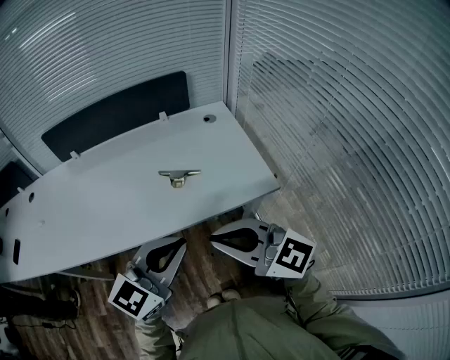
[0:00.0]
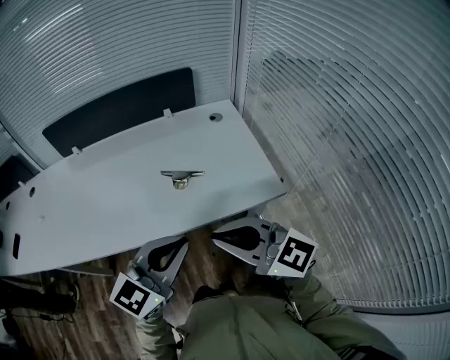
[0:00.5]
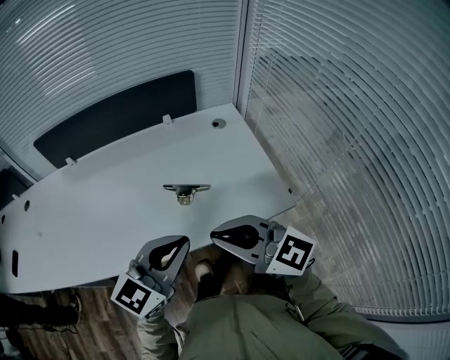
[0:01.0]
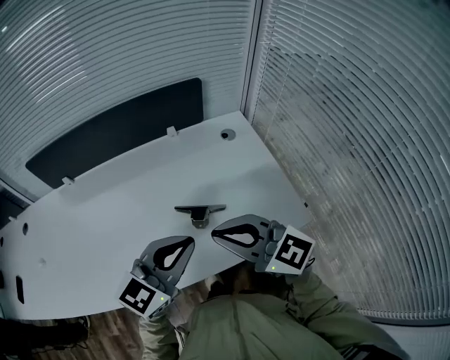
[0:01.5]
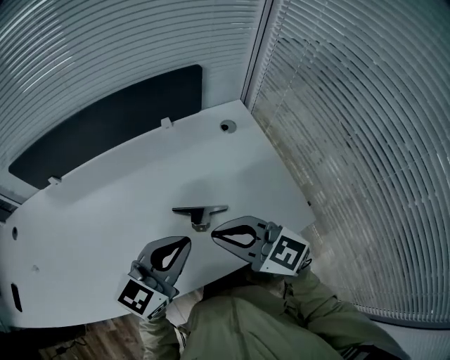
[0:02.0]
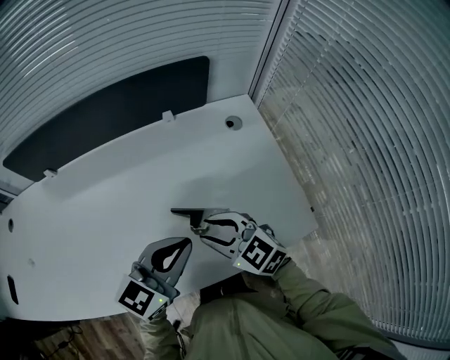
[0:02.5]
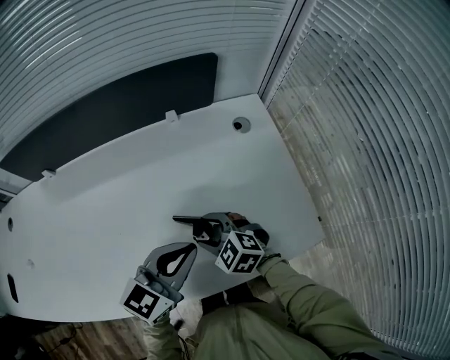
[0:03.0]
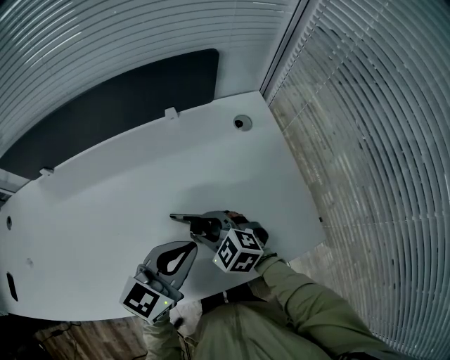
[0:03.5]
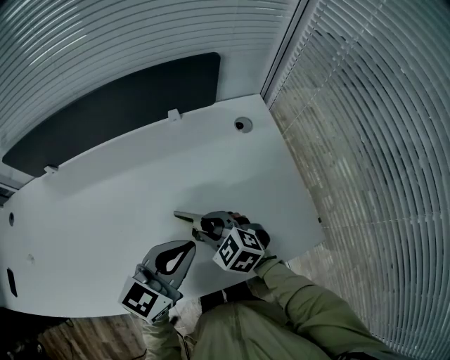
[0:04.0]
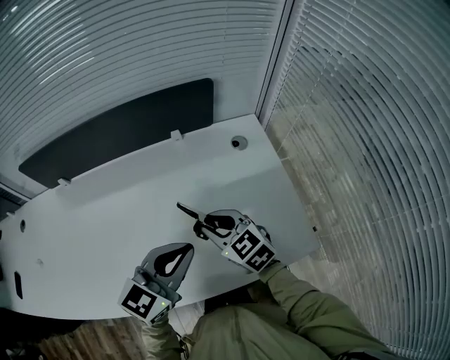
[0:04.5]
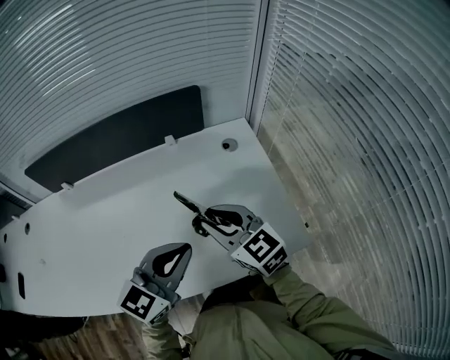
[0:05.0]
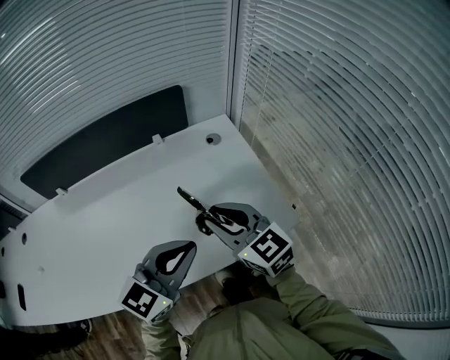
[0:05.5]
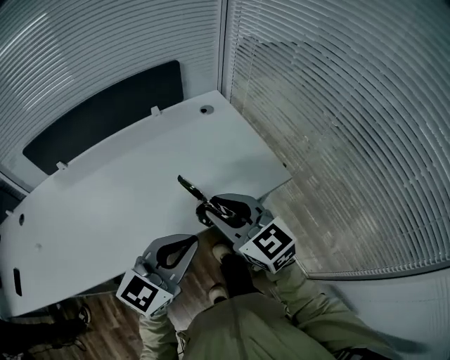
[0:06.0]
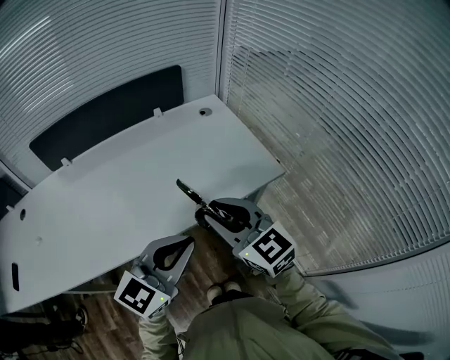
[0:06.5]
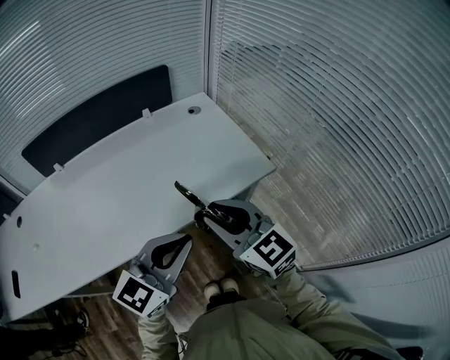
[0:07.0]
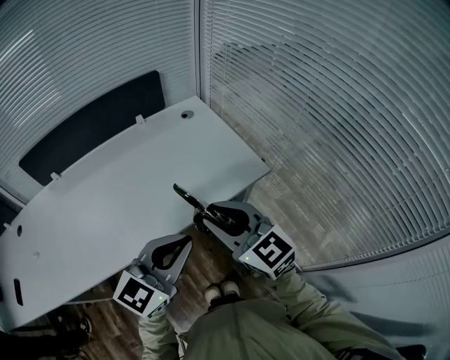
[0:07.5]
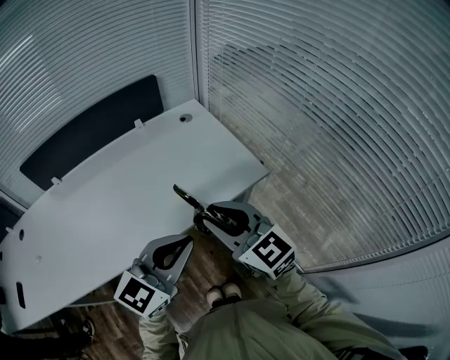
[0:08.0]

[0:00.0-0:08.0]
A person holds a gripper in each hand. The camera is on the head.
0:00.0 to 0:02.0: Both grippers travel together forward, approximately 25 cm.
0:02.0 to 0:04.0: The right gripper goes approximately 20 cm downward and forward, tips its fingers downward by some 30 degrees, and opens up, while the left gripper moves some 5 cm.
0:04.0 to 0:06.0: The right gripper is displaced upward and backward by about 30 cm, and tips its fingers upward by roughly 30 degrees, while the left gripper travels backward by about 20 cm, and swivels roughly 20 degrees.
0:06.0 to 0:08.0: The left gripper shifts by approximately 5 cm. The right gripper goes approximately 10 cm backward and to the right.

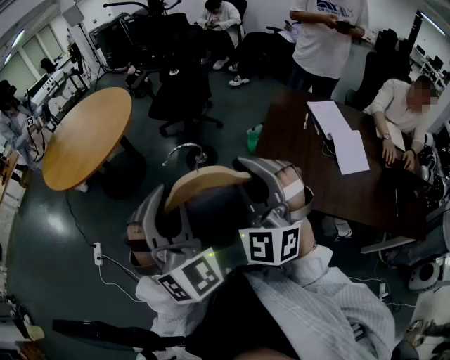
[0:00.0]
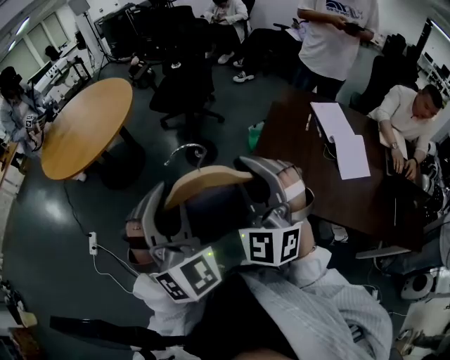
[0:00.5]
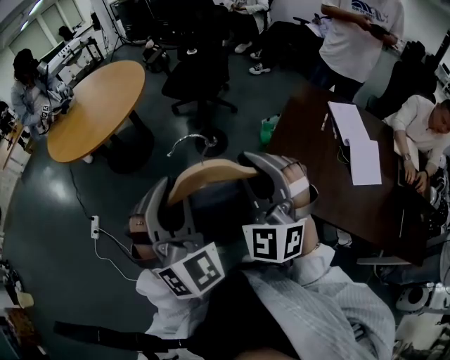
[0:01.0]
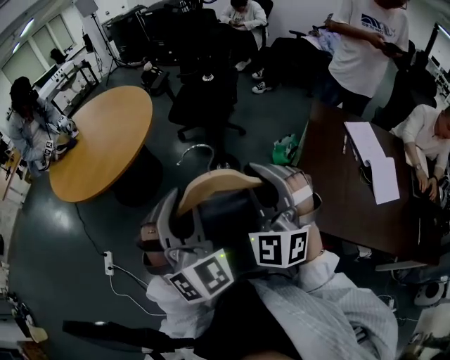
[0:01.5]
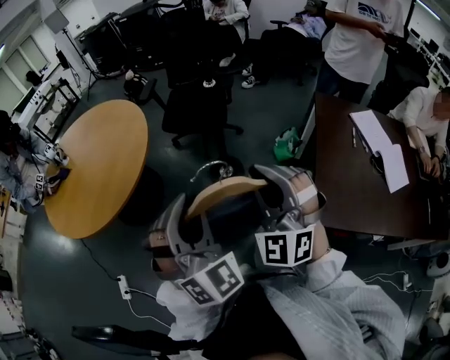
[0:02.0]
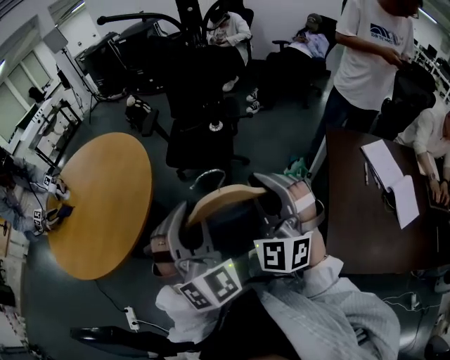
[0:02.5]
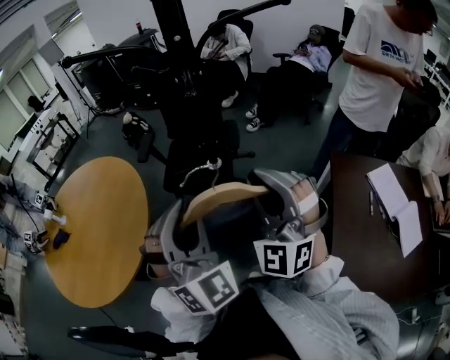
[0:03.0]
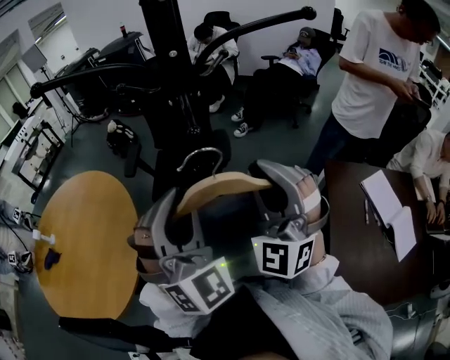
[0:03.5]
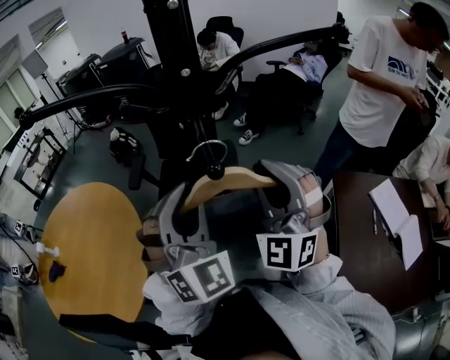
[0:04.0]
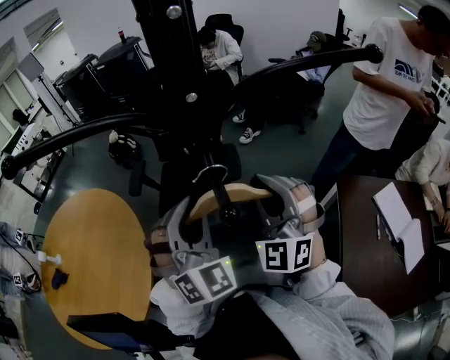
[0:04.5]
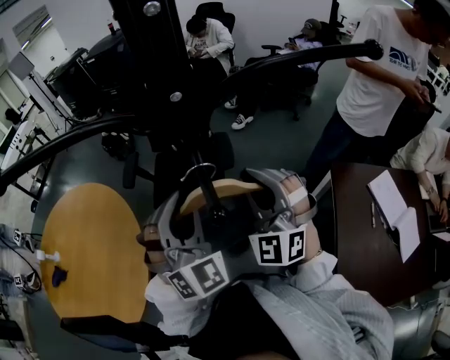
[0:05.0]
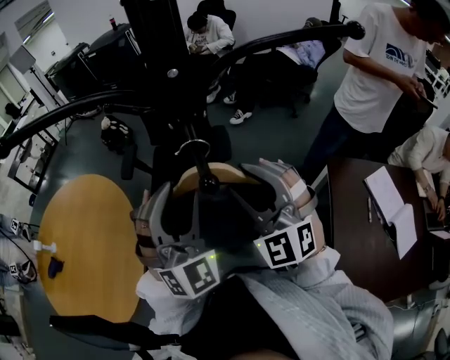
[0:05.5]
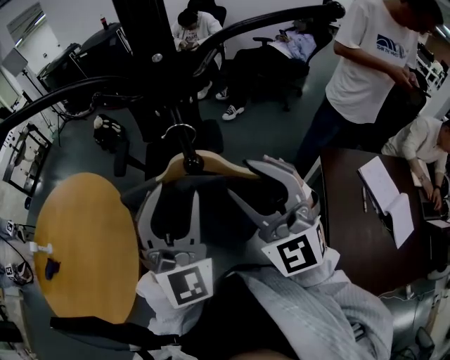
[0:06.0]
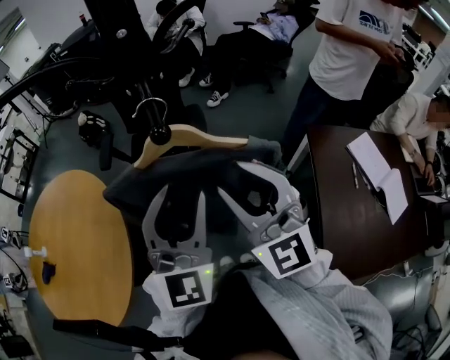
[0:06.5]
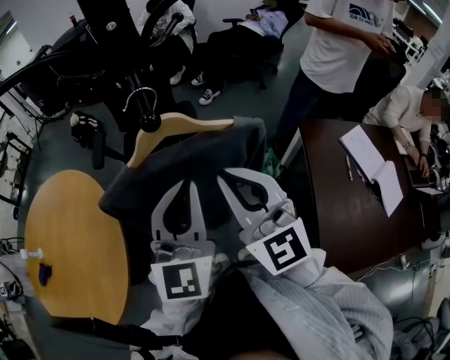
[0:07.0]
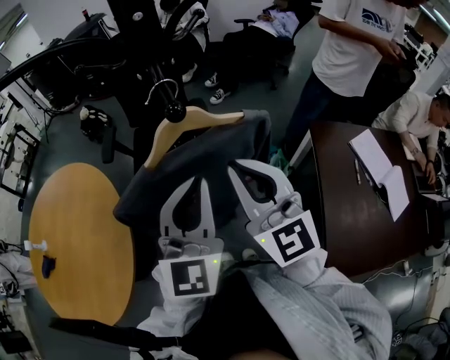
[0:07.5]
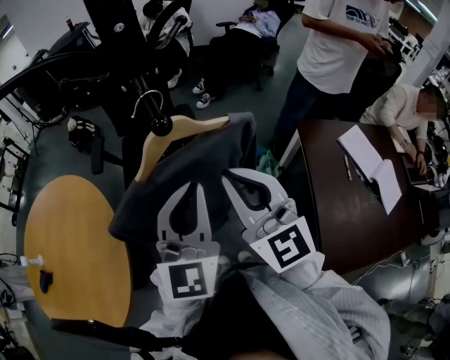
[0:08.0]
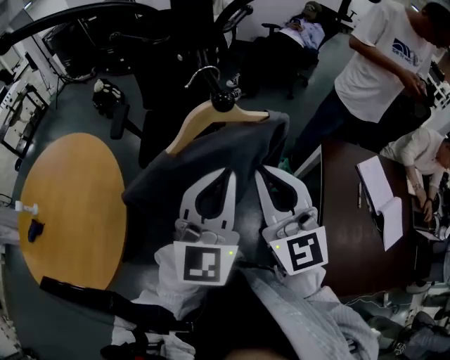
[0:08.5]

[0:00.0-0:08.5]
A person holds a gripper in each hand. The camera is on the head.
0:00.0 to 0:02.0: The grippers both shift forward and to the left by approximately 35 cm.
0:02.0 to 0:04.0: Both grippers are carried forward, approximately 50 cm.
0:04.0 to 0:06.5: The two grippers go some 10 cm backward. The right gripper rotates about 40 degrees, and opens up. The left gripper rotates roughly 40 degrees, and opens.
0:06.5 to 0:08.5: The left gripper closes up. The right gripper closes.

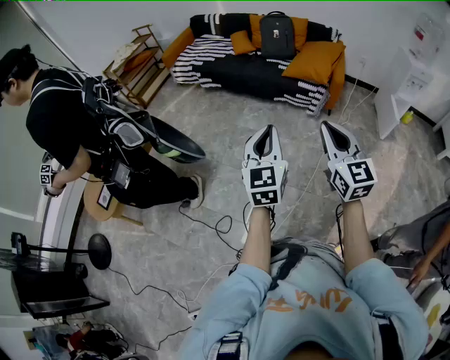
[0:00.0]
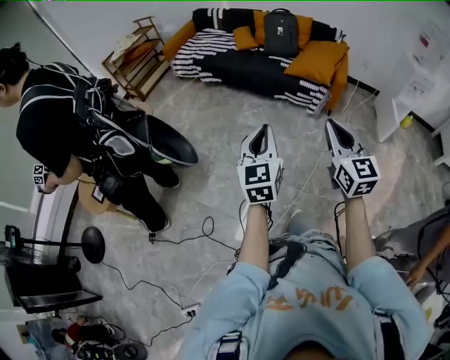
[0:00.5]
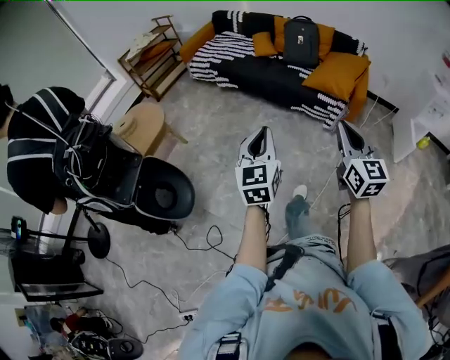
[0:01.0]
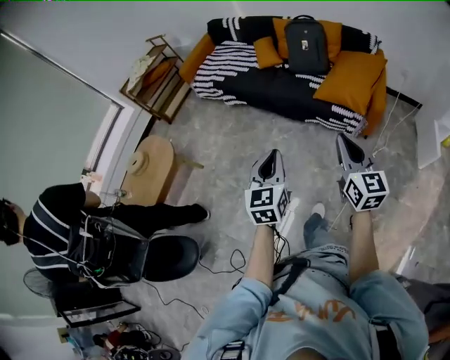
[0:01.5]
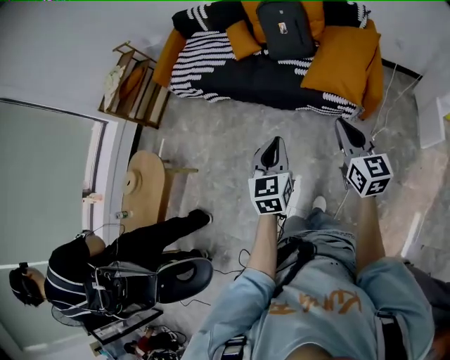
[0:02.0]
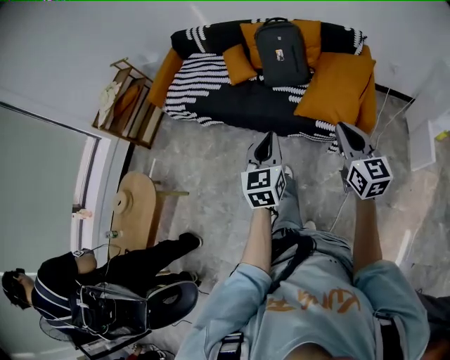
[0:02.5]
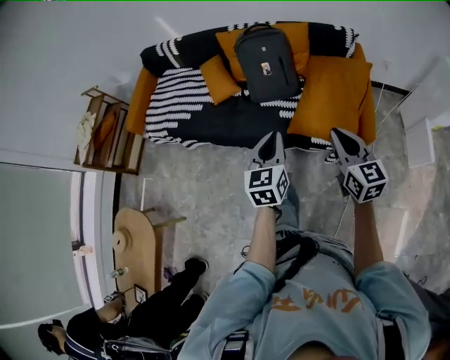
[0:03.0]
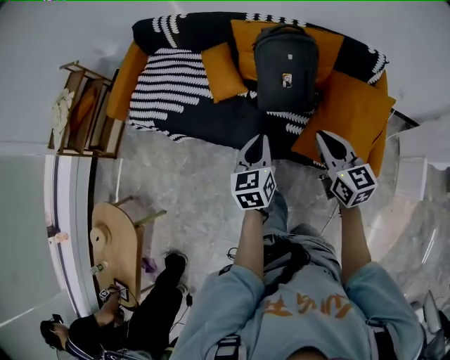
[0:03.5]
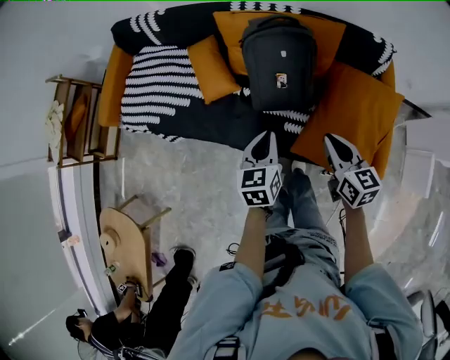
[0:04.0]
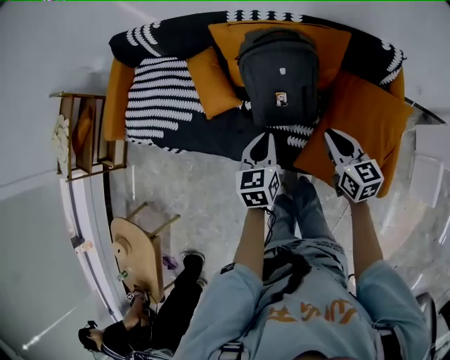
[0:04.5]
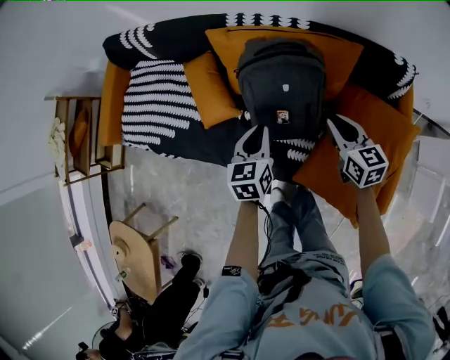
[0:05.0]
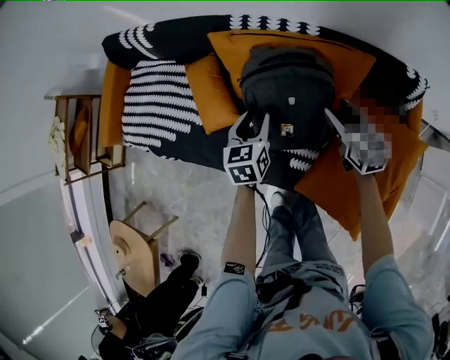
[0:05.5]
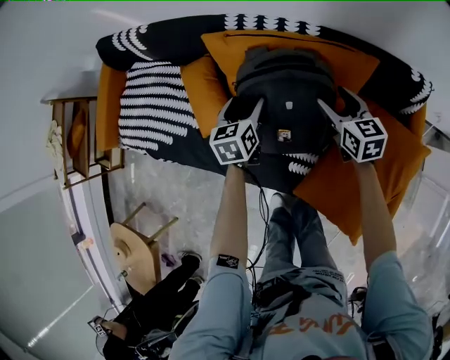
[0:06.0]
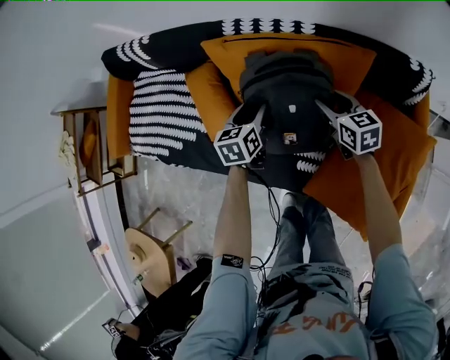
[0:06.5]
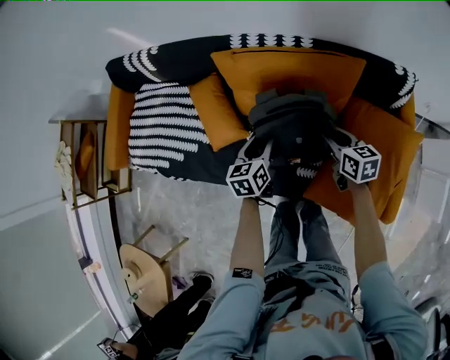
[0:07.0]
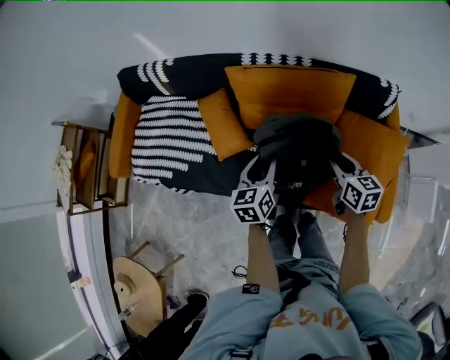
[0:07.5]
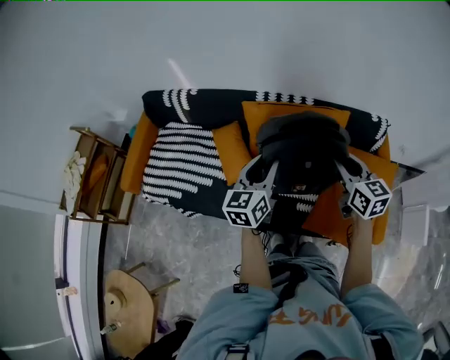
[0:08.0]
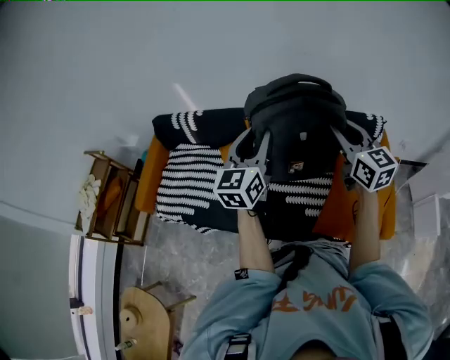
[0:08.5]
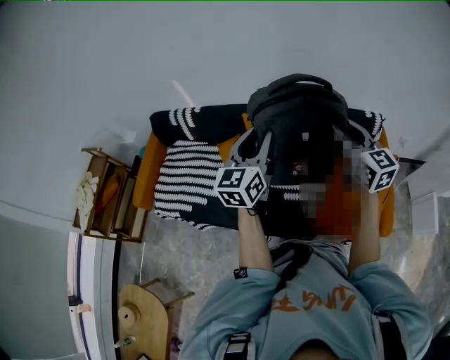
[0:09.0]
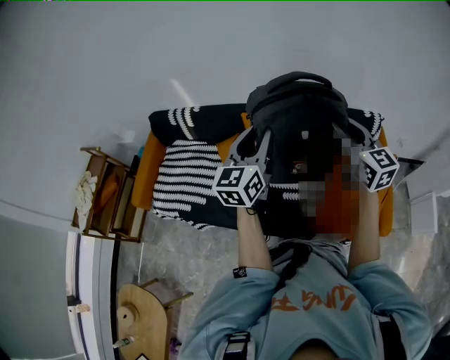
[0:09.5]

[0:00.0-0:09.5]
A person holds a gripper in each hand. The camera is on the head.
0:00.0 to 0:02.0: Both grippers are carried forward, approximately 50 cm. The right gripper swivels about 20 degrees.
0:02.0 to 0:04.0: Both grippers are carried forward, about 50 cm.
0:04.0 to 0:05.5: The grippers both shift forward and downward by approximately 30 cm. The left gripper opens. Meanwhile the right gripper opens up.
0:05.5 to 0:07.5: Both grippers travel together backward, upward and to the left, some 15 cm. The left gripper opens, then closes again, while the right gripper closes up.
0:07.5 to 0:09.5: Both grippers move upward, some 30 cm. The right gripper swivels some 30 degrees, while the left gripper changes its angle by approximately 30 degrees.

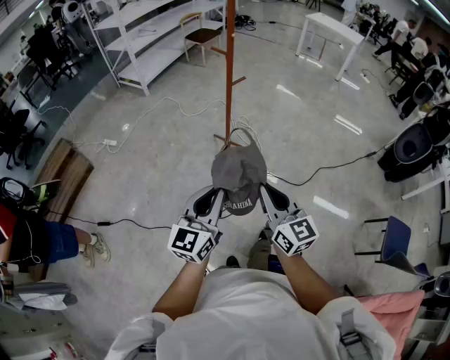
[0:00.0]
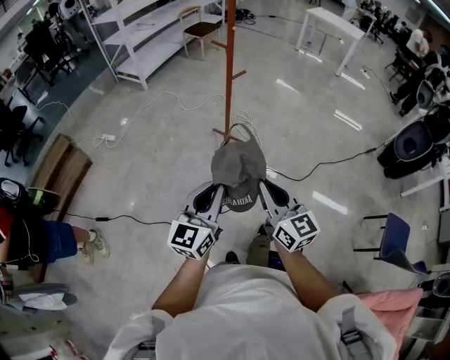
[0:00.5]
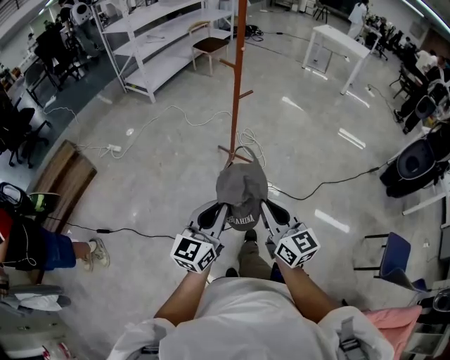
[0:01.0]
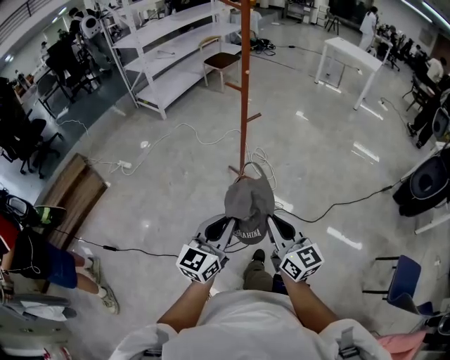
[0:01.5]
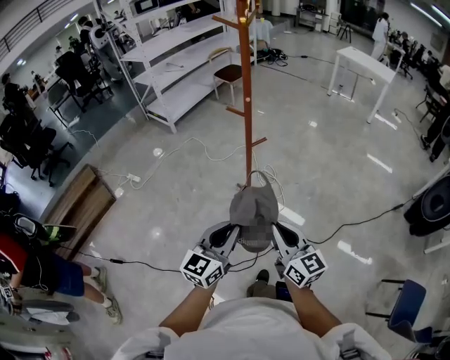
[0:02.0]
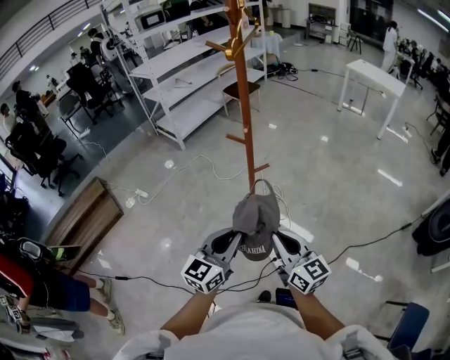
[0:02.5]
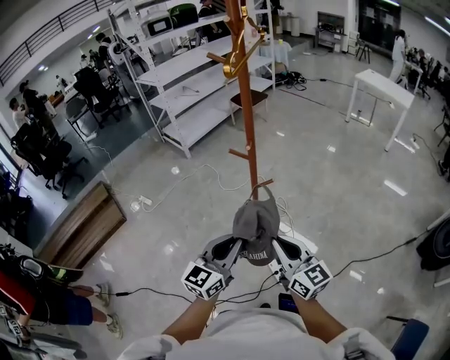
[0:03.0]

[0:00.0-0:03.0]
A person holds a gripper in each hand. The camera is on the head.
0:00.0 to 0:01.5: Both grippers travel together forward, about 10 cm.
0:01.5 to 0:03.0: Both grippers move forward, approximately 25 cm.
